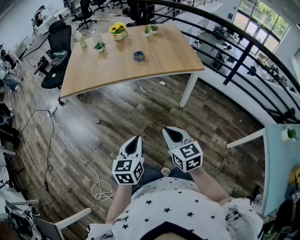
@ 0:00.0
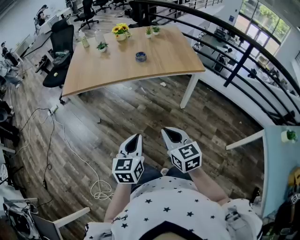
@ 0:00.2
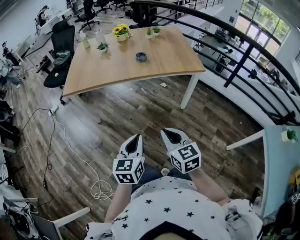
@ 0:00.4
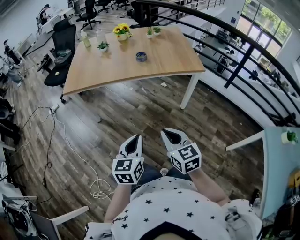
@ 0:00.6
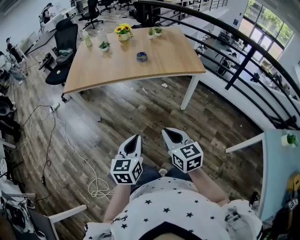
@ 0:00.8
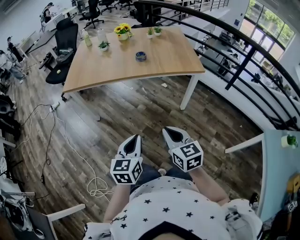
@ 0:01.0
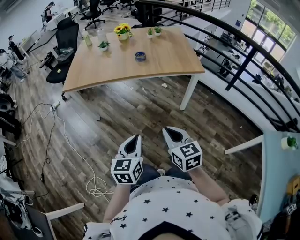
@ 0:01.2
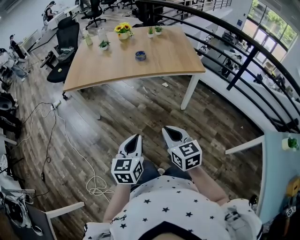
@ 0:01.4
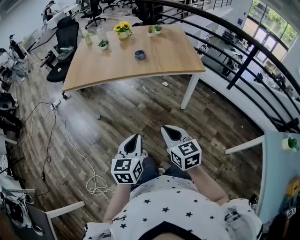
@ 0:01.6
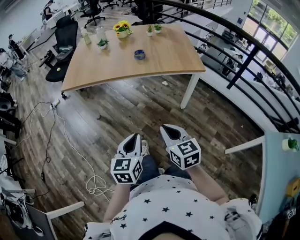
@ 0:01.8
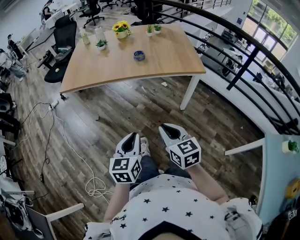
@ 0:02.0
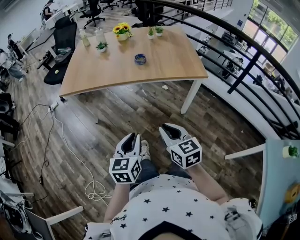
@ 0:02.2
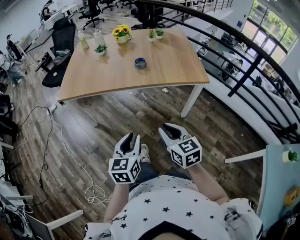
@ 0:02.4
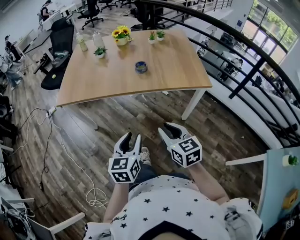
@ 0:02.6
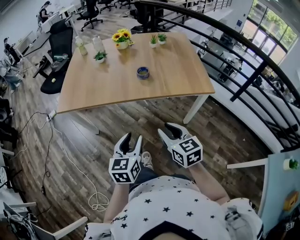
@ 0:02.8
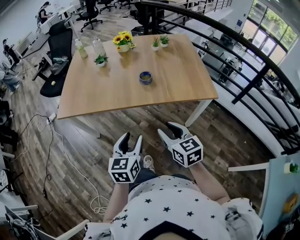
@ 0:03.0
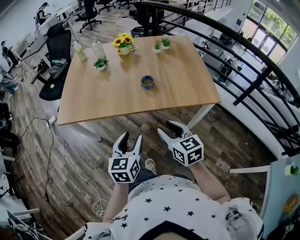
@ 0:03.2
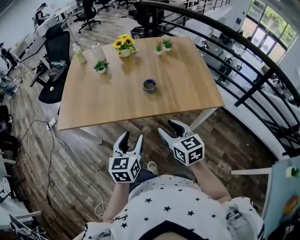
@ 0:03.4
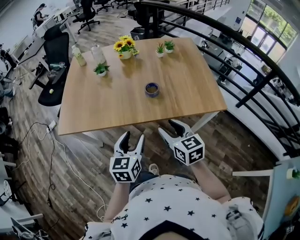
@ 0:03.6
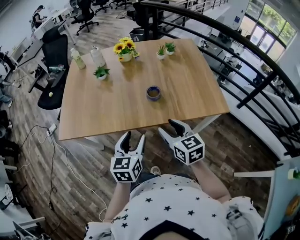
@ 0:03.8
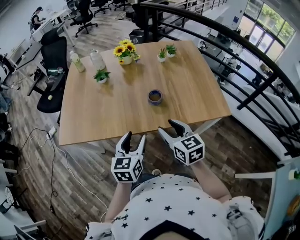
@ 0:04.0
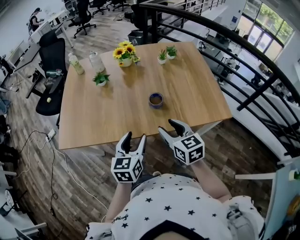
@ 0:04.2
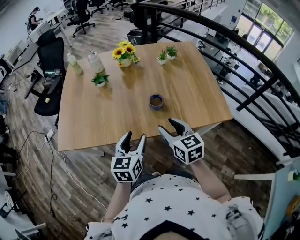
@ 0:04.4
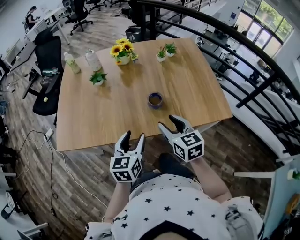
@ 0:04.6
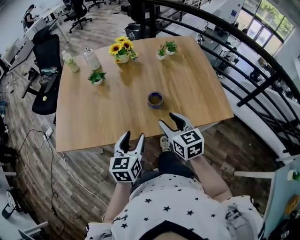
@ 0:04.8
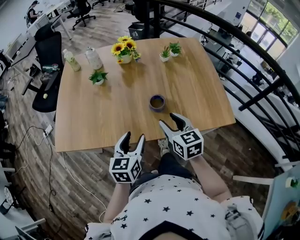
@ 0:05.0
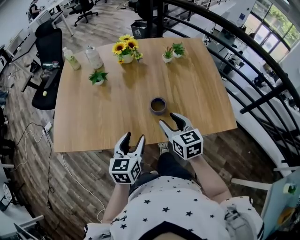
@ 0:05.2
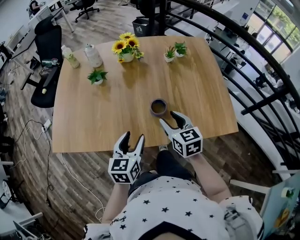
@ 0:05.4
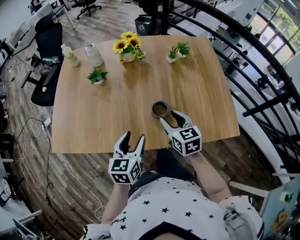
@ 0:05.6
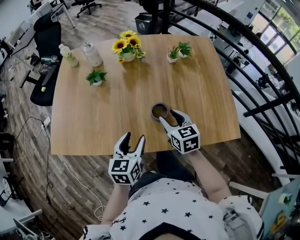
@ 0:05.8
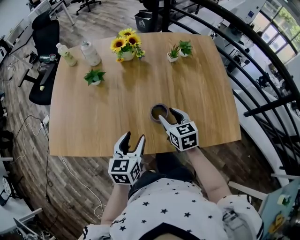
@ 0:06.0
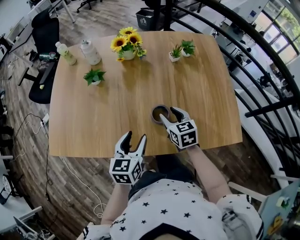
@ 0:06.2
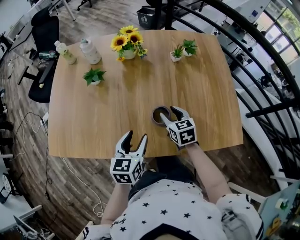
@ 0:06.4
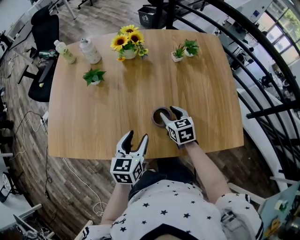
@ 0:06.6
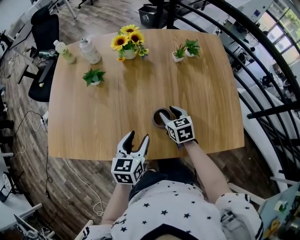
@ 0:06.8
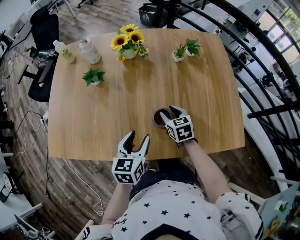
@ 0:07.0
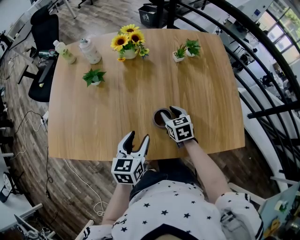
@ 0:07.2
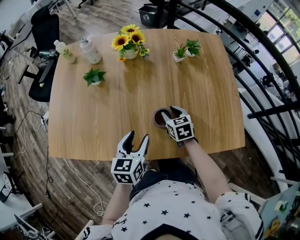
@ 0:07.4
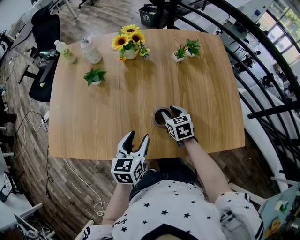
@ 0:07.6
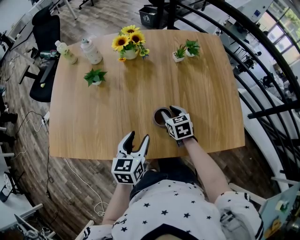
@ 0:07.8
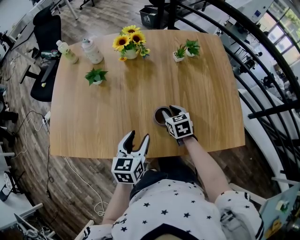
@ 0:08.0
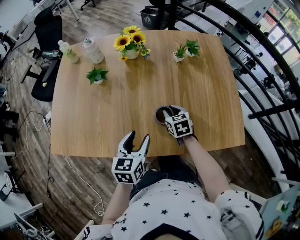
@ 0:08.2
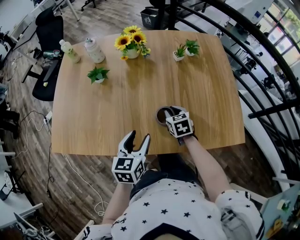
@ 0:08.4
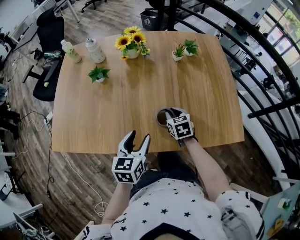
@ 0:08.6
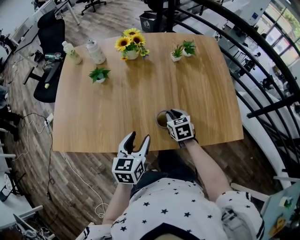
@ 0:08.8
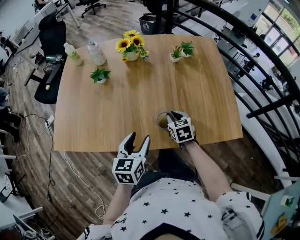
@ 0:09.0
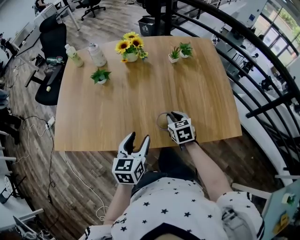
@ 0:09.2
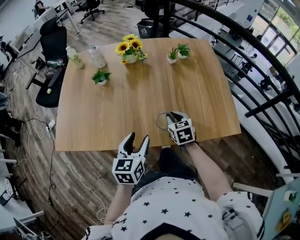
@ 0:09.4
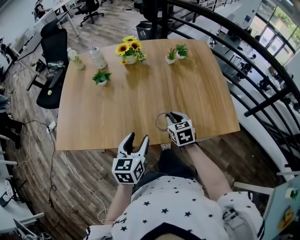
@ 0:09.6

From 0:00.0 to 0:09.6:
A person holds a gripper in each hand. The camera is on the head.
From 0:00.0 to 0:01.6: The left gripper ends up some 5 cm from where it was.
From 0:01.6 to 0:03.2: The grippers both shift forward by roughly 30 cm. The left gripper opens its fingers. Meanwhile the right gripper opens its fingers.
From 0:03.2 to 0:04.8: Both grippers move forward, some 20 cm.
From 0:04.8 to 0:06.4: The right gripper heads forward and downward, covering some 20 cm; the left gripper shifts about 15 cm forward and downward.
From 0:06.4 to 0:08.0: There are only small adjustments of the grippers.
From 0:08.0 to 0:09.6: The left gripper is displaced backward by some 10 cm. Meanwhile the right gripper travels backward and upward by roughly 15 cm.

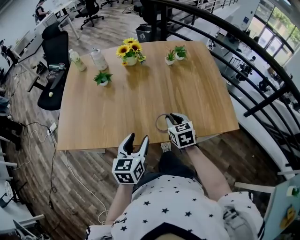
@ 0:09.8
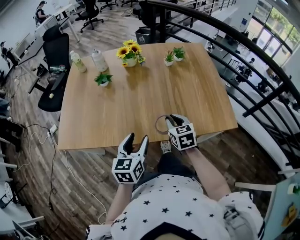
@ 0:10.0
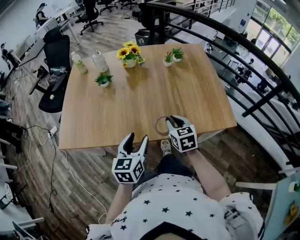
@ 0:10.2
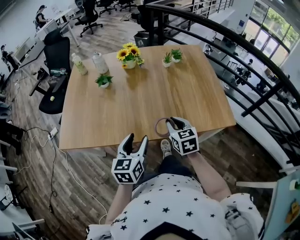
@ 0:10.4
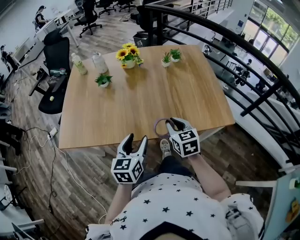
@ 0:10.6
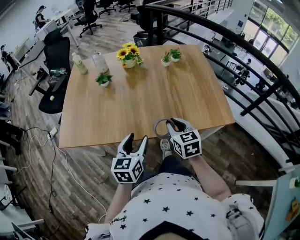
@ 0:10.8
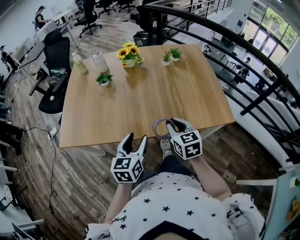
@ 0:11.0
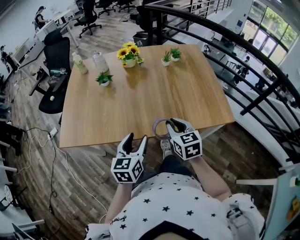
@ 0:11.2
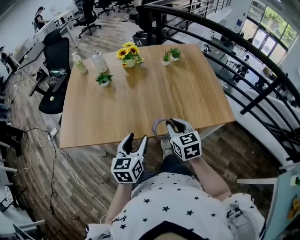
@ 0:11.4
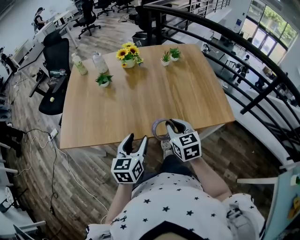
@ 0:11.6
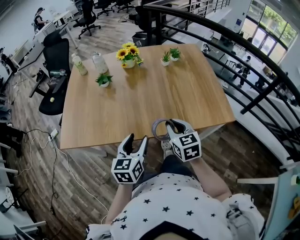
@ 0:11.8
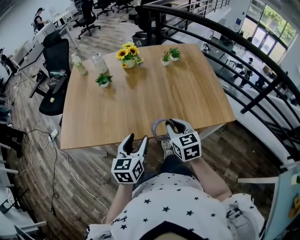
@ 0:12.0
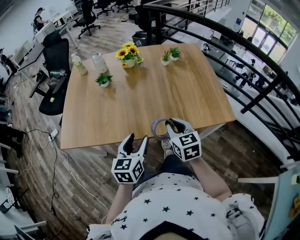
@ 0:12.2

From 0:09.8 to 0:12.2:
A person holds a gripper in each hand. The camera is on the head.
From 0:09.8 to 0:11.0: The left gripper ends up approximately 5 cm from where it was. The right gripper goes some 10 cm backward and upward.
From 0:11.0 to 0:12.2: Both grippers stay about where they are.

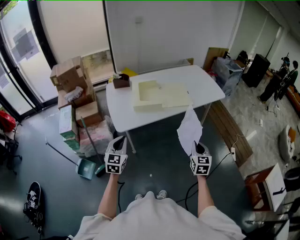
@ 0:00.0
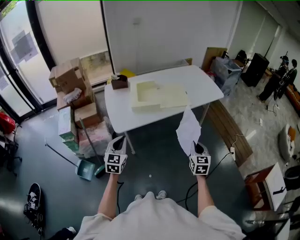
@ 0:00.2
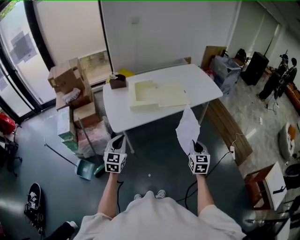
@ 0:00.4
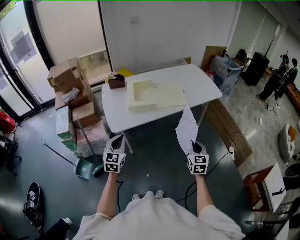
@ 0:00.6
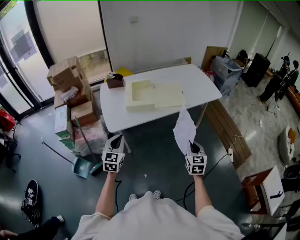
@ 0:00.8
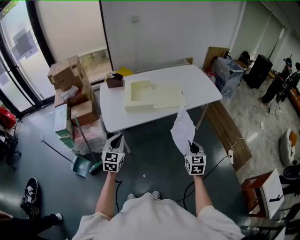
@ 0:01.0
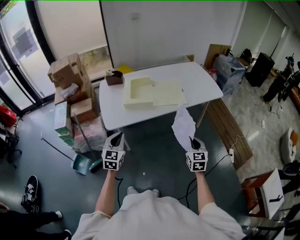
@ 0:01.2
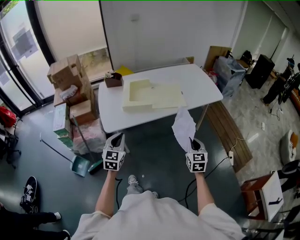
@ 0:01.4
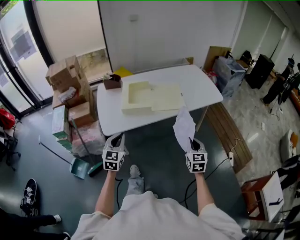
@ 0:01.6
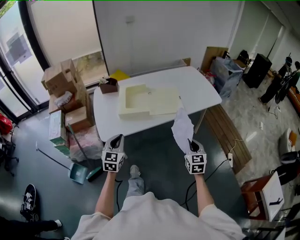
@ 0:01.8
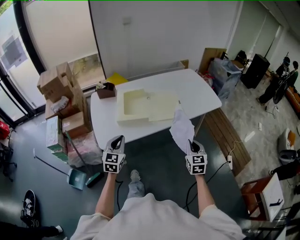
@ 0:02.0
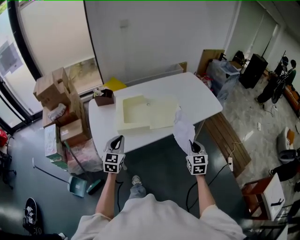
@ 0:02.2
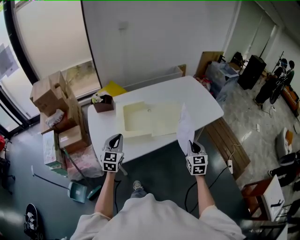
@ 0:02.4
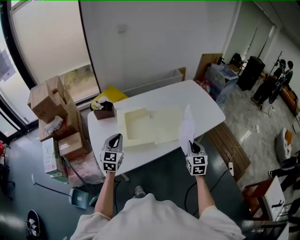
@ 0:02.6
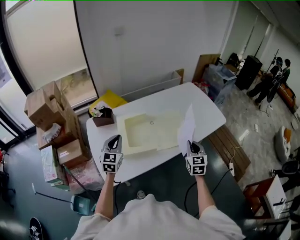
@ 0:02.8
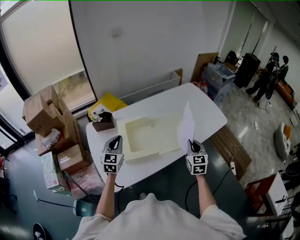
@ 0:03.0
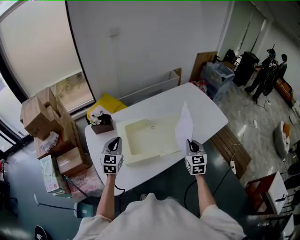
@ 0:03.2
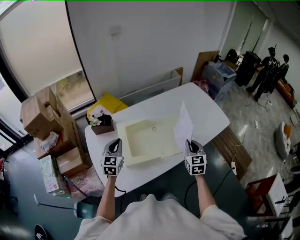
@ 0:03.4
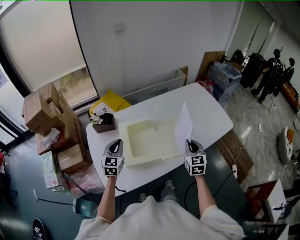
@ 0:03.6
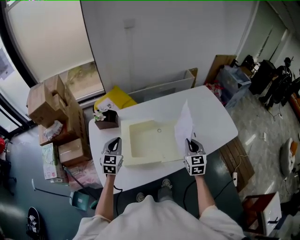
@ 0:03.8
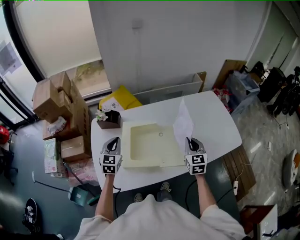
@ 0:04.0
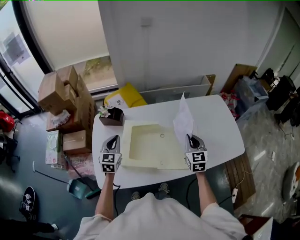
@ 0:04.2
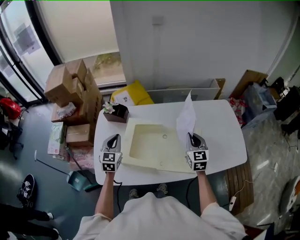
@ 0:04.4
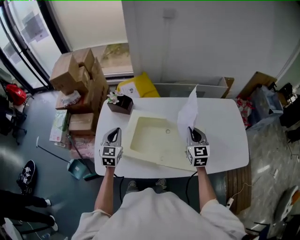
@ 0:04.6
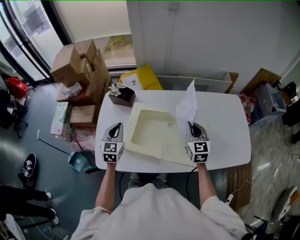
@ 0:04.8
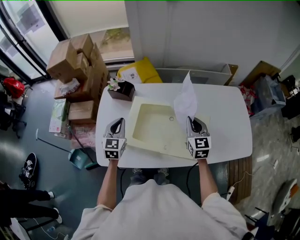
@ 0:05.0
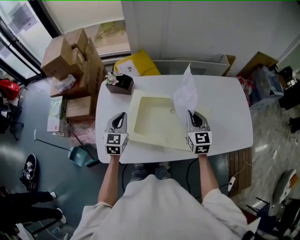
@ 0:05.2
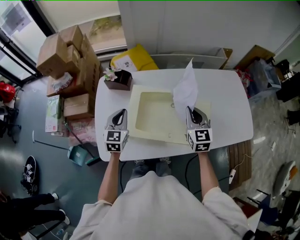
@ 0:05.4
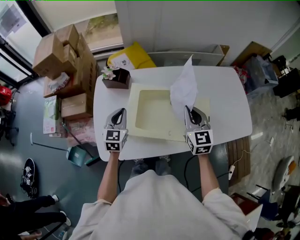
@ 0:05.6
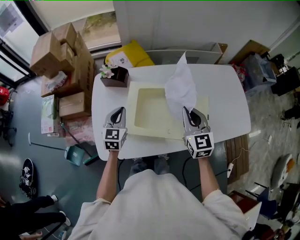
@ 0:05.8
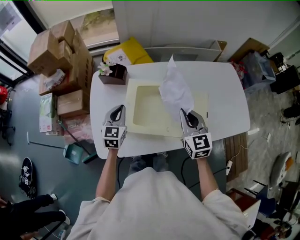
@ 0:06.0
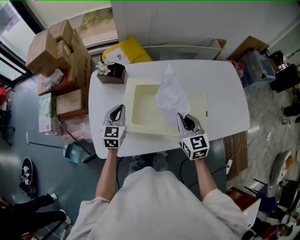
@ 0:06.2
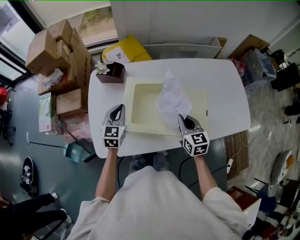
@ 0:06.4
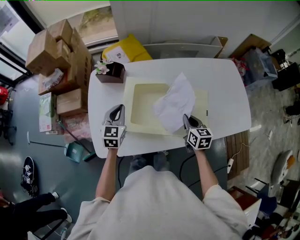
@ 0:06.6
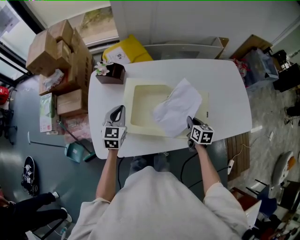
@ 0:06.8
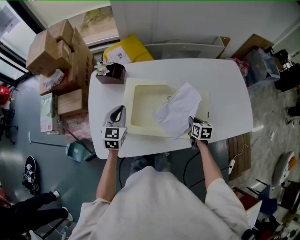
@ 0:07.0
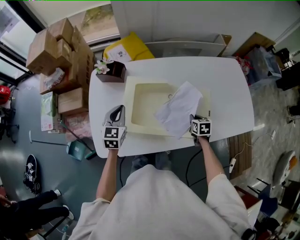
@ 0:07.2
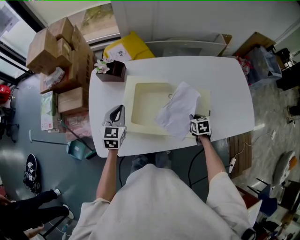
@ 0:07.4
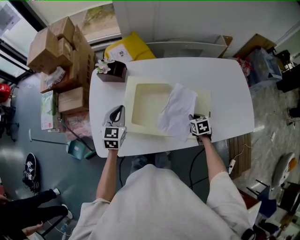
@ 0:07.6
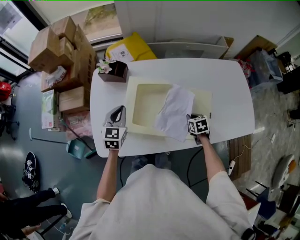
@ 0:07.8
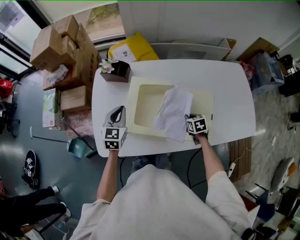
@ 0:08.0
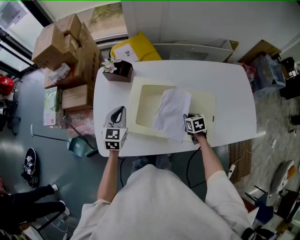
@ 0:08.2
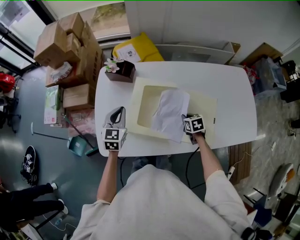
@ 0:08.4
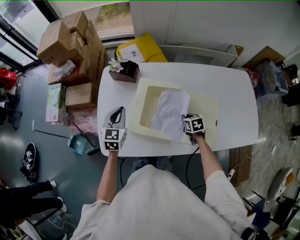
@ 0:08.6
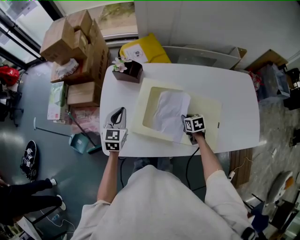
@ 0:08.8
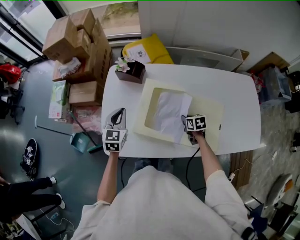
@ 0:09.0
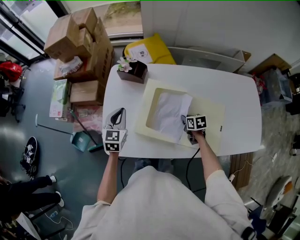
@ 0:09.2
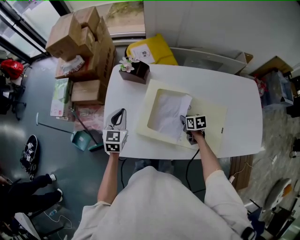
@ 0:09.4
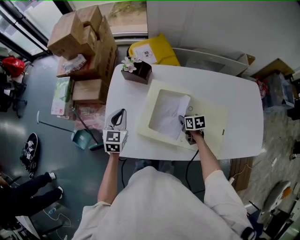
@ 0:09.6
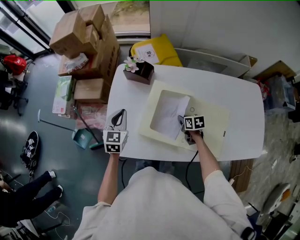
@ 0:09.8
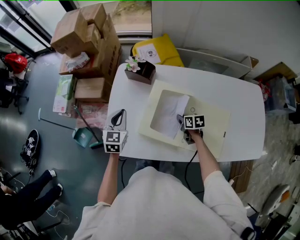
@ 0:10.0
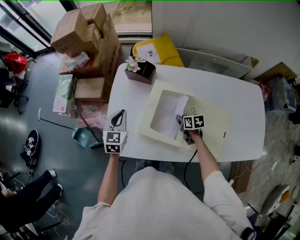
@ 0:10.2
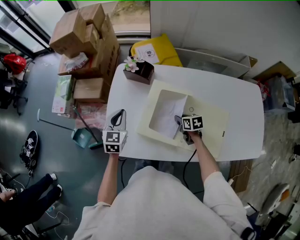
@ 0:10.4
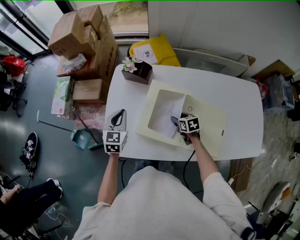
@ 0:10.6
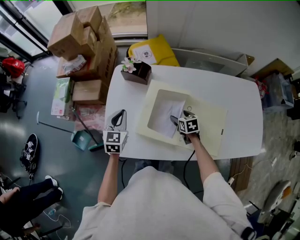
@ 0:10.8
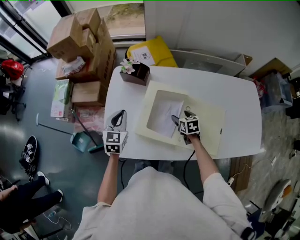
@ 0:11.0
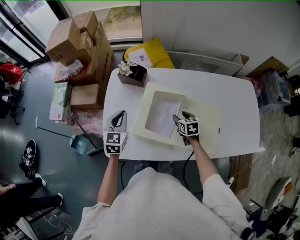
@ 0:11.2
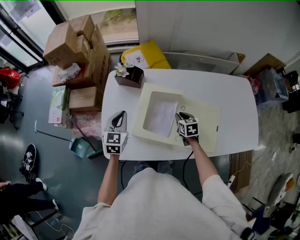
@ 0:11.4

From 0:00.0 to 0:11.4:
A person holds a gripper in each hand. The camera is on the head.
From 0:00.0 to 0:01.4: The right gripper shifts roughly 10 cm forward and to the right; the left gripper is displaced to the right by roughly 10 cm.
From 0:01.4 to 0:02.8: The grippers both shift forward by approximately 30 cm.
From 0:02.8 to 0:04.2: The left gripper goes about 10 cm forward. Meanwhile the right gripper travels forward by some 20 cm, and rotates about 20 degrees.
From 0:04.2 to 0:05.6: The right gripper travels to the left by approximately 10 cm.
From 0:05.6 to 0:07.2: The right gripper travels downward and to the right by some 30 cm, and tips its fingers downward by approximately 40 degrees.
From 0:07.2 to 0:08.6: The right gripper moves to the left, approximately 10 cm. Meanwhile the left gripper is displaced to the left by some 5 cm.
From 0:08.6 to 0:10.0: The right gripper heads to the left and forward, covering some 10 cm, while the left gripper is displaced to the left by approximately 5 cm.
From 0:10.0 to 0:11.4: The right gripper moves upward, about 5 cm, turns by roughly 20 degrees, and opens and closes again.
